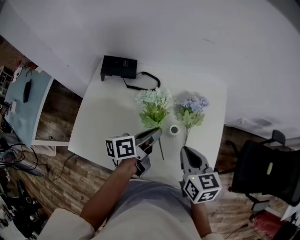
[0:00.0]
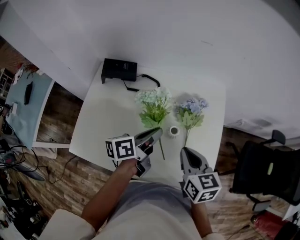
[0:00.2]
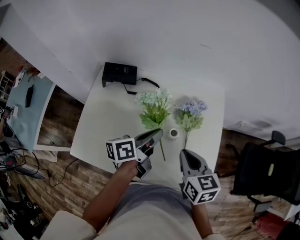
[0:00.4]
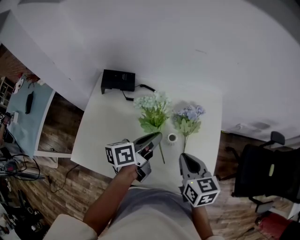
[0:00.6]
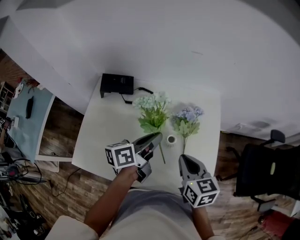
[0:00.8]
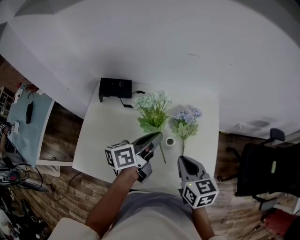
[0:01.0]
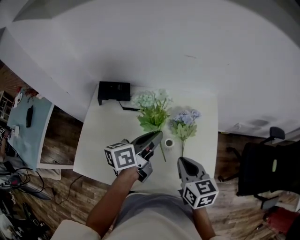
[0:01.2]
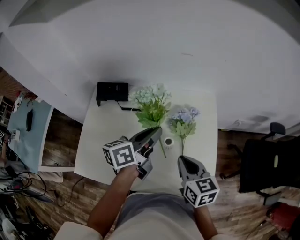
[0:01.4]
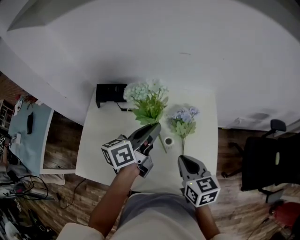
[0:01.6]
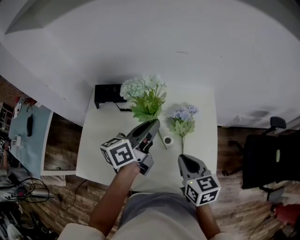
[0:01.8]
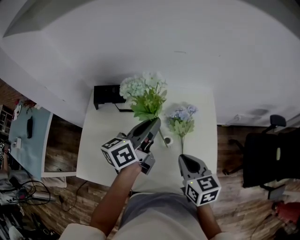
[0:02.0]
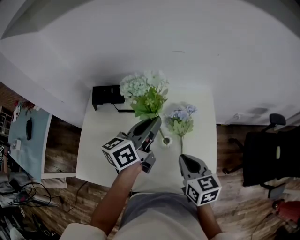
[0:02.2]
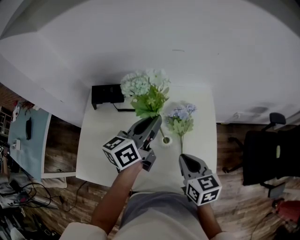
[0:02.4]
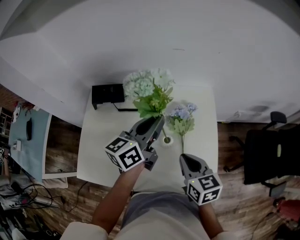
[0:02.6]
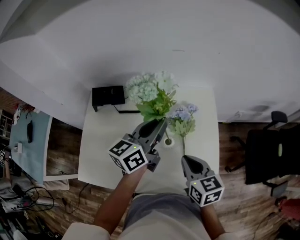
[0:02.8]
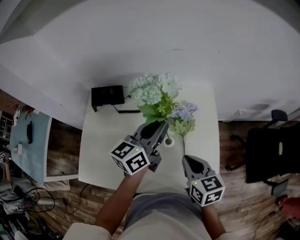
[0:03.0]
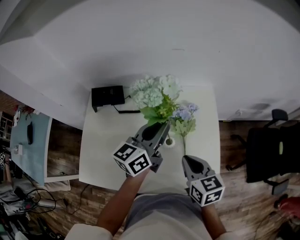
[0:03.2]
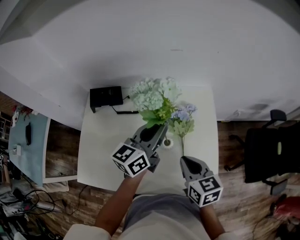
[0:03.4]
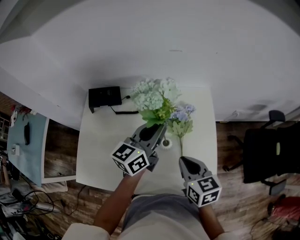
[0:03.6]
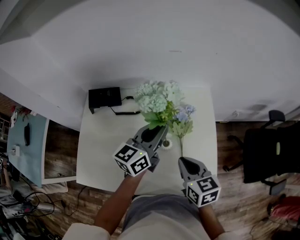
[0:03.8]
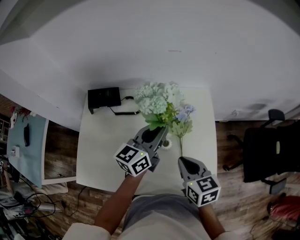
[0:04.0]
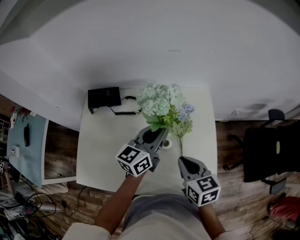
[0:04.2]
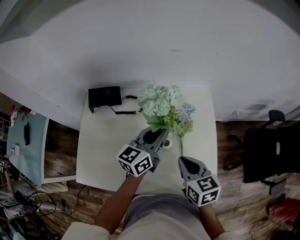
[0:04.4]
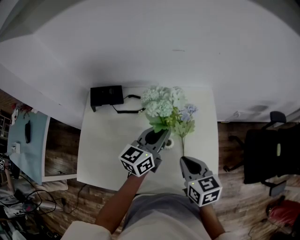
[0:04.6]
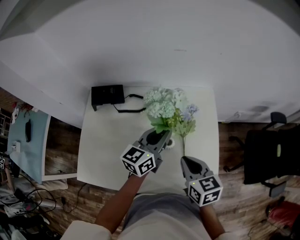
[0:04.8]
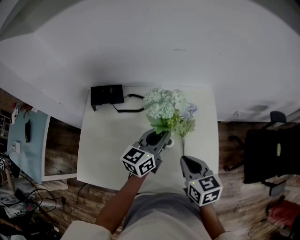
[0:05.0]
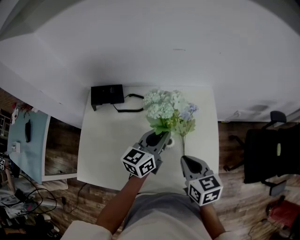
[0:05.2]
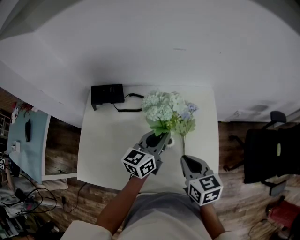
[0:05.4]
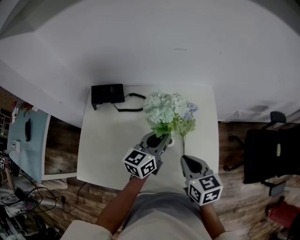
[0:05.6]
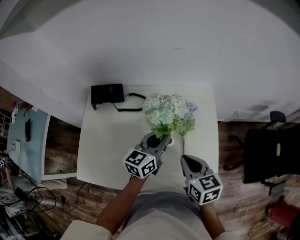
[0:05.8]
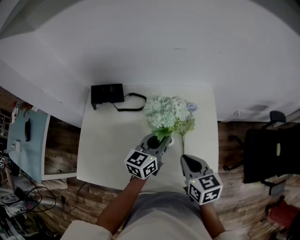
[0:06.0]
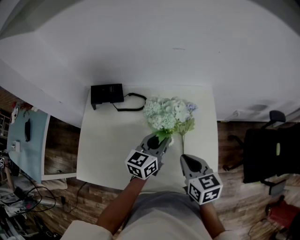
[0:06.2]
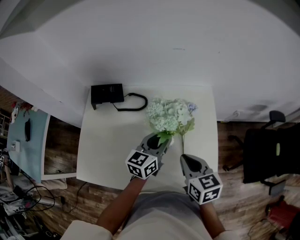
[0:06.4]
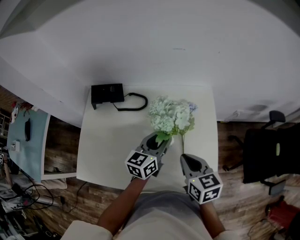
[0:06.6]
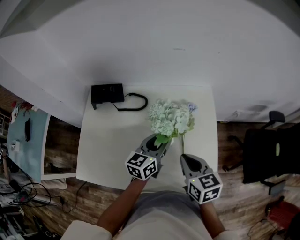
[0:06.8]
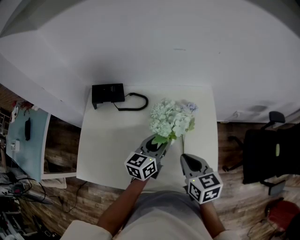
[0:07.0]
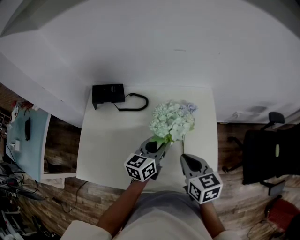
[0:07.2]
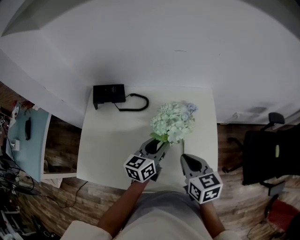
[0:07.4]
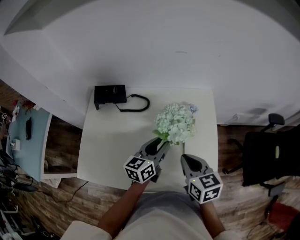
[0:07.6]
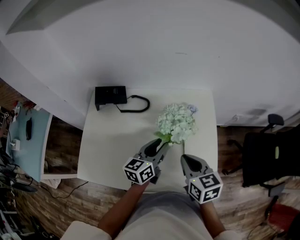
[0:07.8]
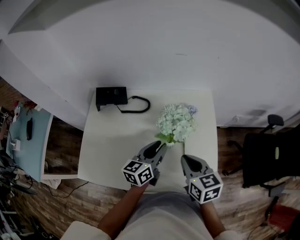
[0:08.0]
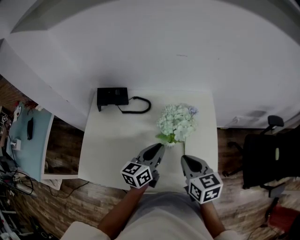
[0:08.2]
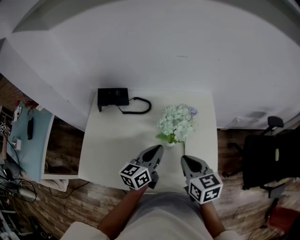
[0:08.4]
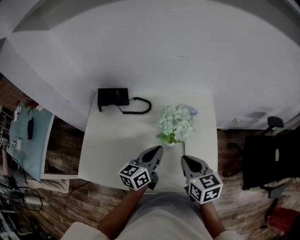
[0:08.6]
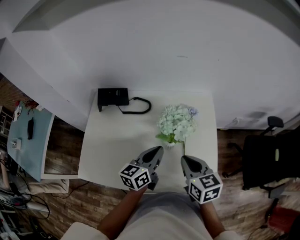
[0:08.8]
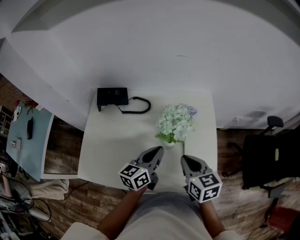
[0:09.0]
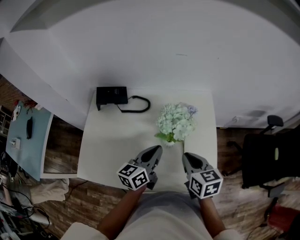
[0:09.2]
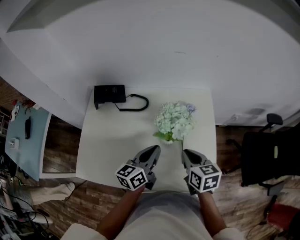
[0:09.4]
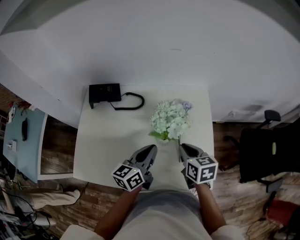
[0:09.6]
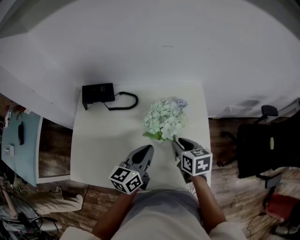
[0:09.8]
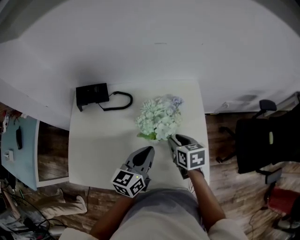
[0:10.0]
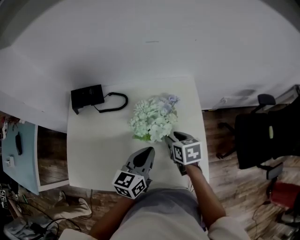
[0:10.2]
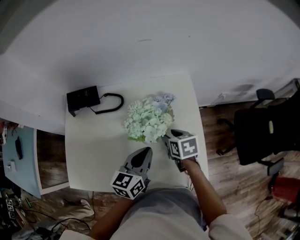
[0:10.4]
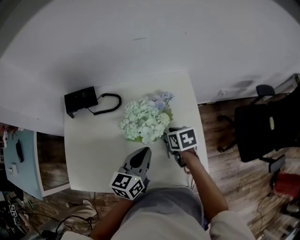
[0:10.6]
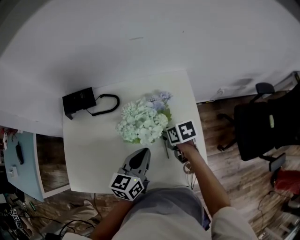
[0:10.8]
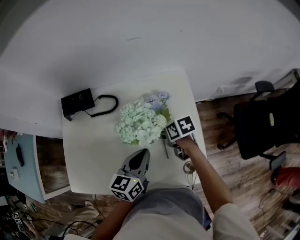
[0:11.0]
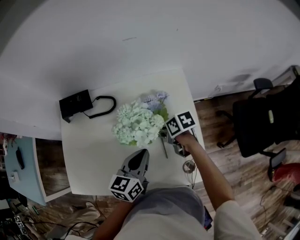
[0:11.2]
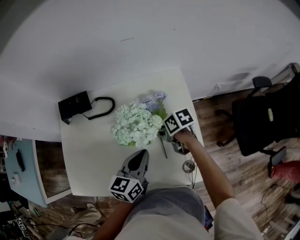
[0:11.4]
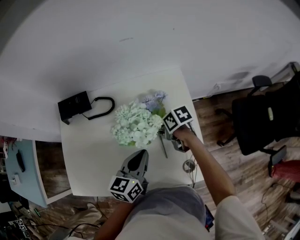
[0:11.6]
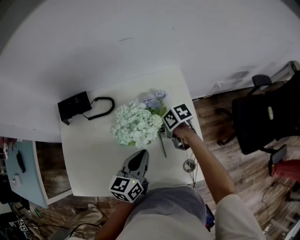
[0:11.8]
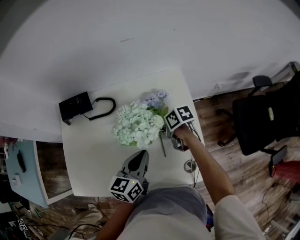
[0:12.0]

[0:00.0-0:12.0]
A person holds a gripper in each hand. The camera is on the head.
0:00.0 to 0:01.6: The left gripper shifts about 10 cm upward and forward.
0:01.6 to 0:03.0: The grippers make only small movements.
0:03.0 to 0:04.4: There are only small adjustments of the grippers.
0:04.4 to 0:06.0: The left gripper changes place by some 5 cm.
0:06.0 to 0:07.6: The grippers make only small movements.
0:07.6 to 0:09.0: The left gripper closes up.
0:09.0 to 0:10.4: The right gripper goes about 15 cm downward and forward, turns by about 20 degrees, and opens up.
0:10.4 to 0:12.0: The right gripper changes place by about 5 cm, rotates approximately 30 degrees, and closes its fingers.

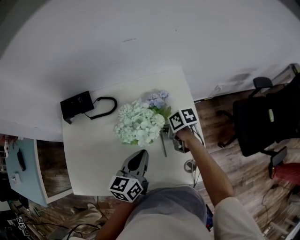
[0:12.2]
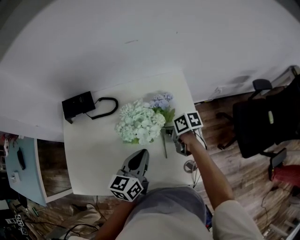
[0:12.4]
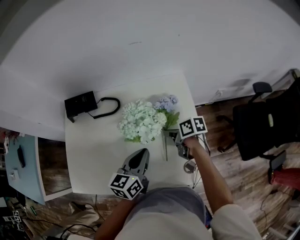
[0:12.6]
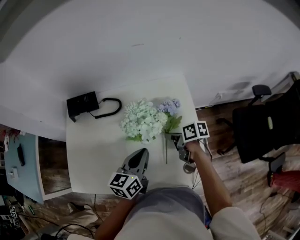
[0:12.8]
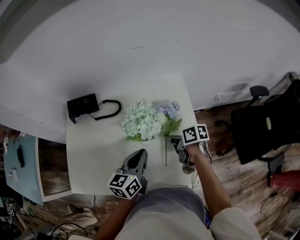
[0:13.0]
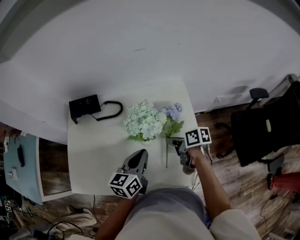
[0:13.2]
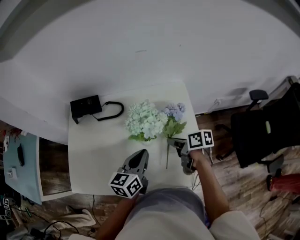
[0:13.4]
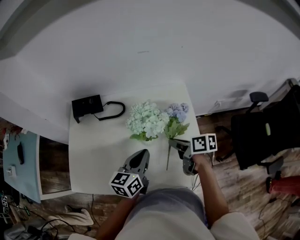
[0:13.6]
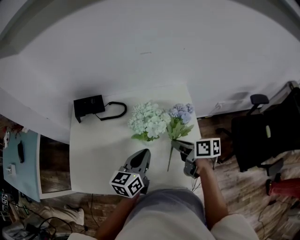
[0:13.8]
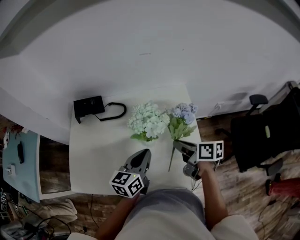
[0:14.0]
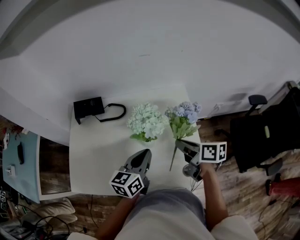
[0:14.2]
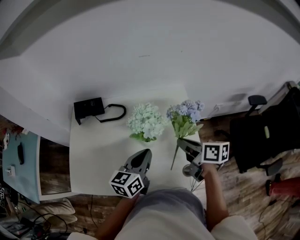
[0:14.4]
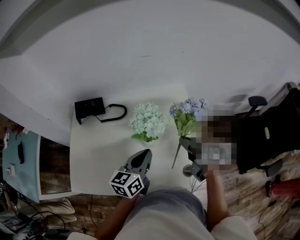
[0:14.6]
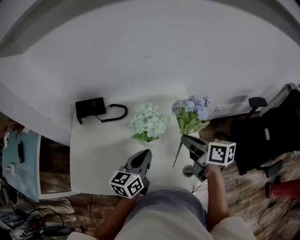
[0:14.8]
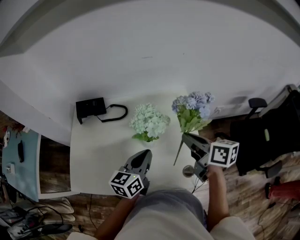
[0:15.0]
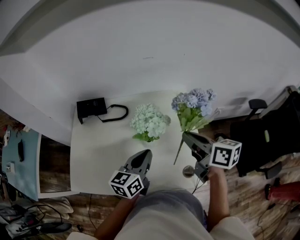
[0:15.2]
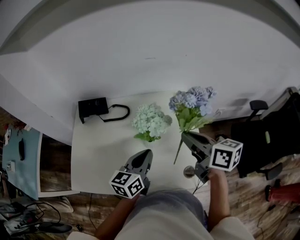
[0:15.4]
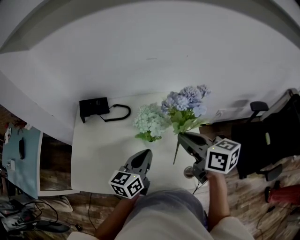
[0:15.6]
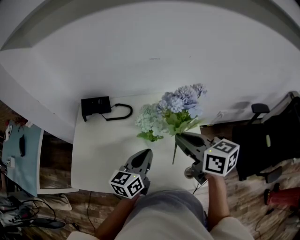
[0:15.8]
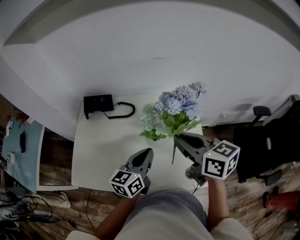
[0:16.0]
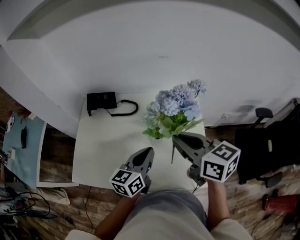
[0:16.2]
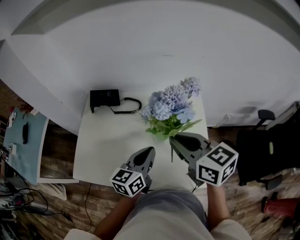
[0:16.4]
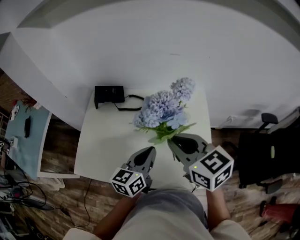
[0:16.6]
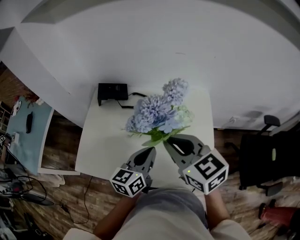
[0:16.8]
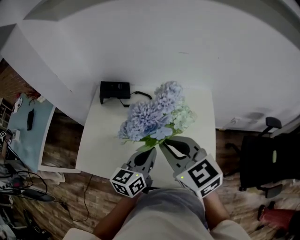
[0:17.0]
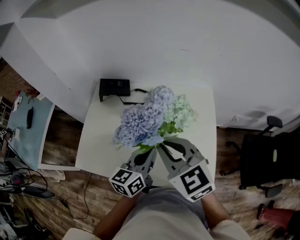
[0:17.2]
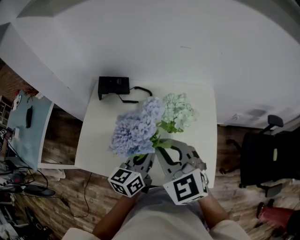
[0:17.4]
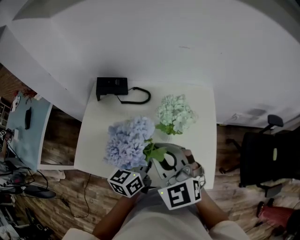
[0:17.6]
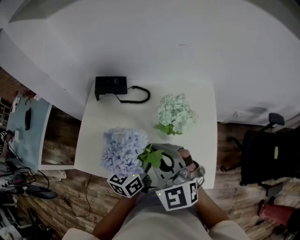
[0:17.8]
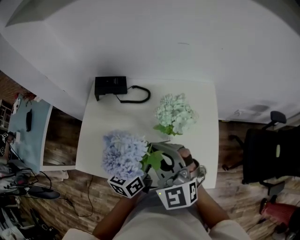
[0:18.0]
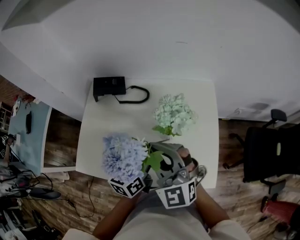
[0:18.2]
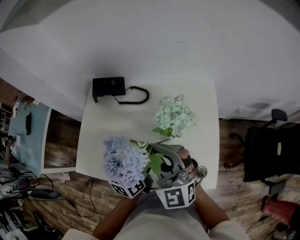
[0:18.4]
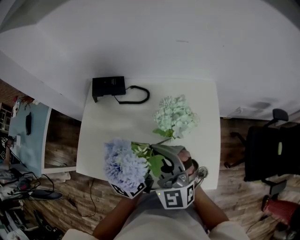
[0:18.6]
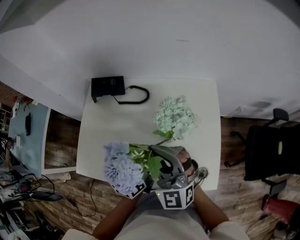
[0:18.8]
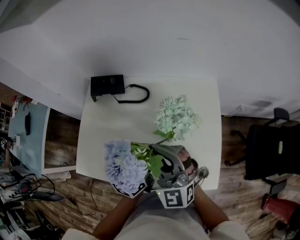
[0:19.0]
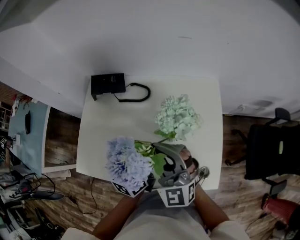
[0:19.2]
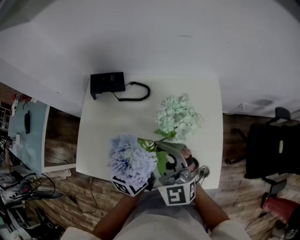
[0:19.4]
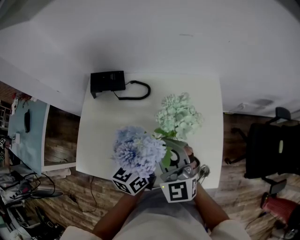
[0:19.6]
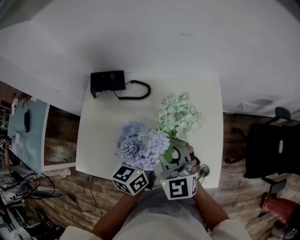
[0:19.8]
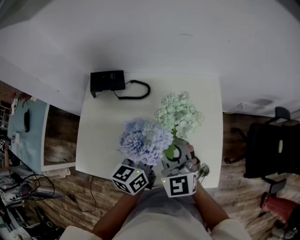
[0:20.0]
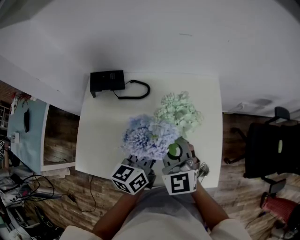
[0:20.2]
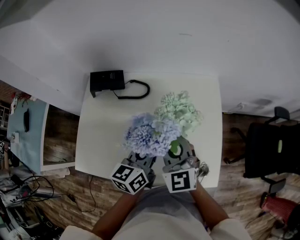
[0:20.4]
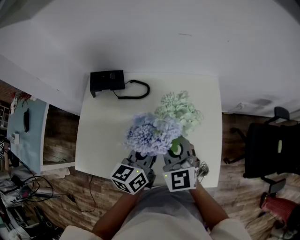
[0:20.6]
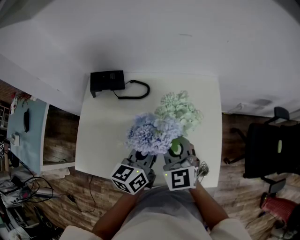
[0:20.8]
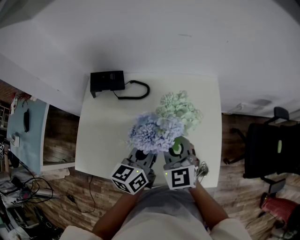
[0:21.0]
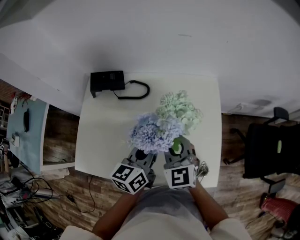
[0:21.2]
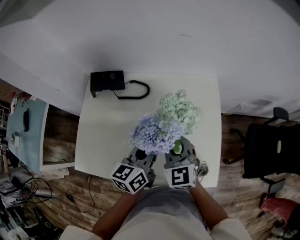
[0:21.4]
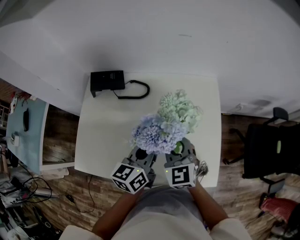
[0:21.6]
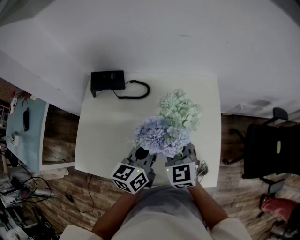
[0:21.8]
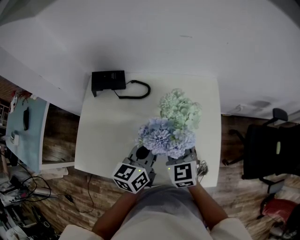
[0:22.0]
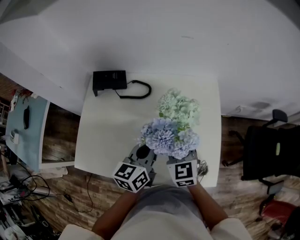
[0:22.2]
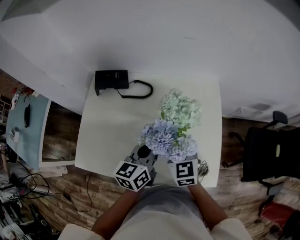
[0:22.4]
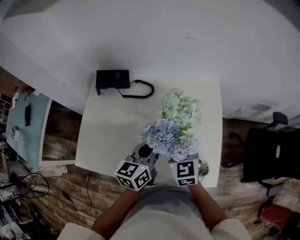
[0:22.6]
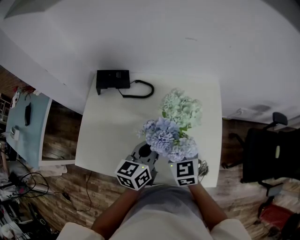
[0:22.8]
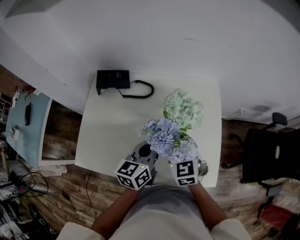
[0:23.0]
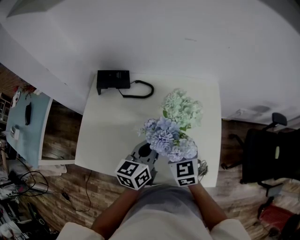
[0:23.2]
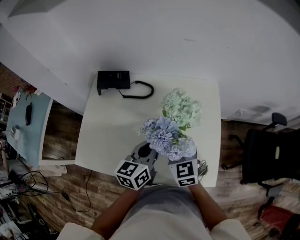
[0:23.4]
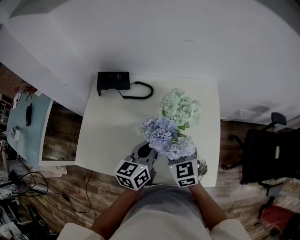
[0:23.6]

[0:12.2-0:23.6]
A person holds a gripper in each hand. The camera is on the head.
0:12.2 to 0:13.6: The right gripper shifts approximately 10 cm upward and backward, and changes its angle by about 20 degrees.
0:13.6 to 0:15.0: The right gripper is displaced upward by some 15 cm, and turns by approximately 20 degrees.
0:15.0 to 0:16.4: The right gripper goes some 15 cm to the left and upward, and turns by roughly 30 degrees.
0:16.4 to 0:17.8: The right gripper is displaced to the left by about 10 cm, and rolls counterclockwise, seen from behind, by roughly 40 degrees.
0:17.8 to 0:19.4: The right gripper shifts by some 5 cm.
0:19.4 to 0:20.8: The right gripper goes approximately 5 cm downward.
0:20.8 to 0:22.2: The grippers stay close to where they were, moving slightly.
0:22.2 to 0:23.6: The right gripper opens up.

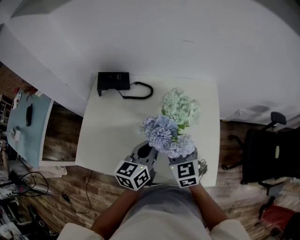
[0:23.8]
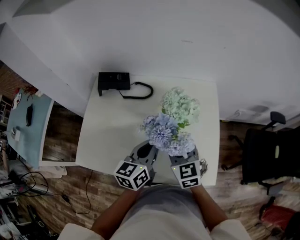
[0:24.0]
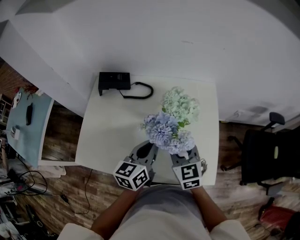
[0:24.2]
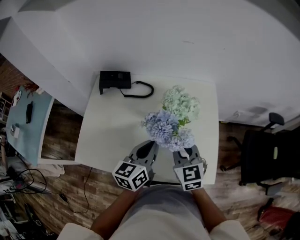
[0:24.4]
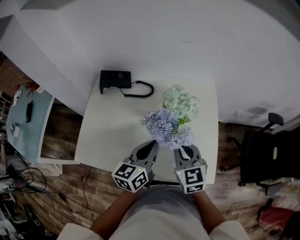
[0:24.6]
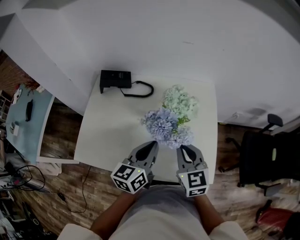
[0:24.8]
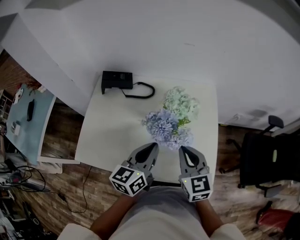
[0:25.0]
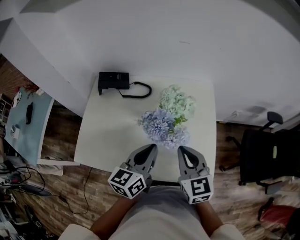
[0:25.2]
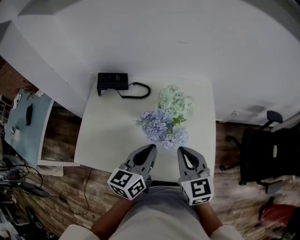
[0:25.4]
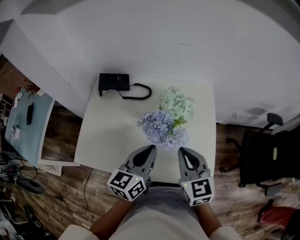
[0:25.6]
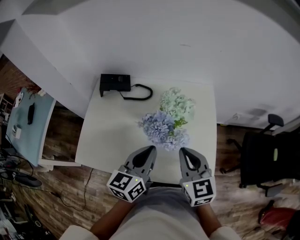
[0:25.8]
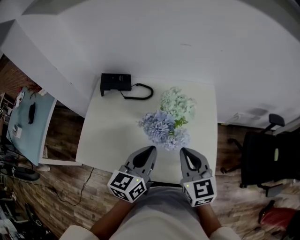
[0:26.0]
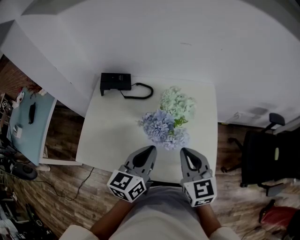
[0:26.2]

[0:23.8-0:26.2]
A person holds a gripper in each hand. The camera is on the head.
0:23.8 to 0:25.0: The left gripper changes place by some 5 cm, while the right gripper shifts approximately 10 cm upward and backward, and closes.
0:25.0 to 0:26.2: The grippers move only a little.
